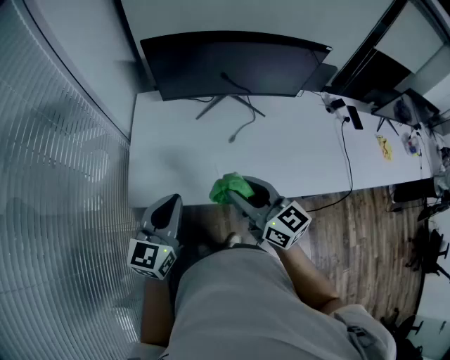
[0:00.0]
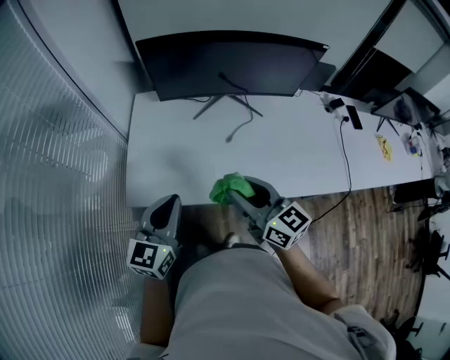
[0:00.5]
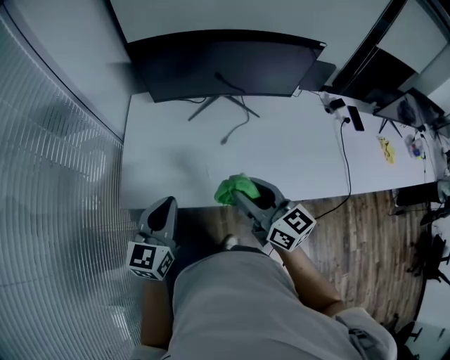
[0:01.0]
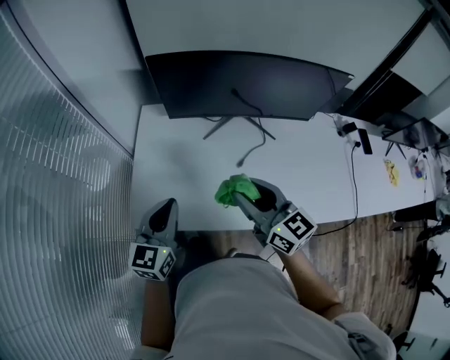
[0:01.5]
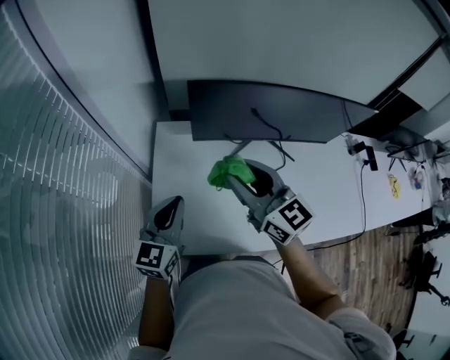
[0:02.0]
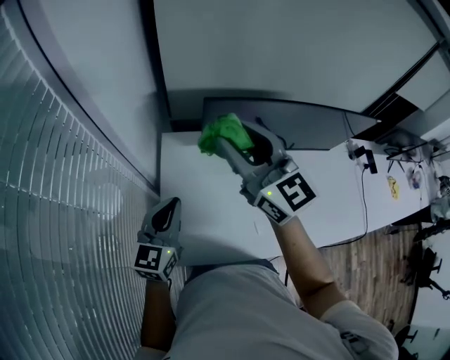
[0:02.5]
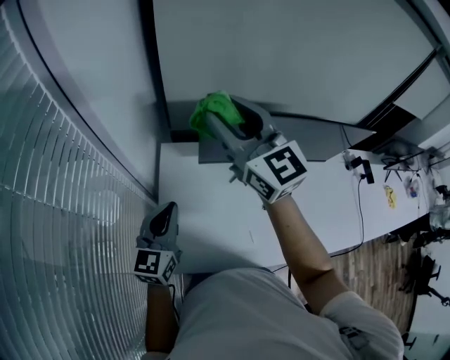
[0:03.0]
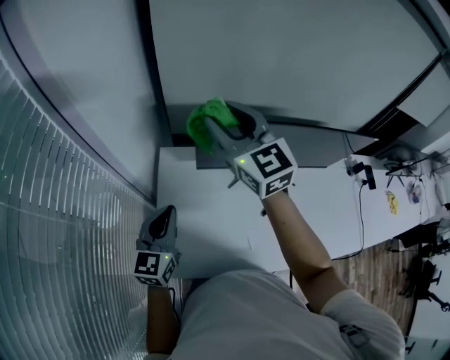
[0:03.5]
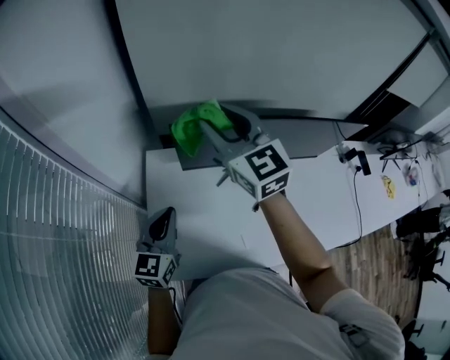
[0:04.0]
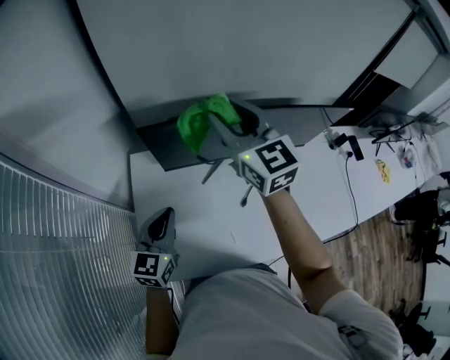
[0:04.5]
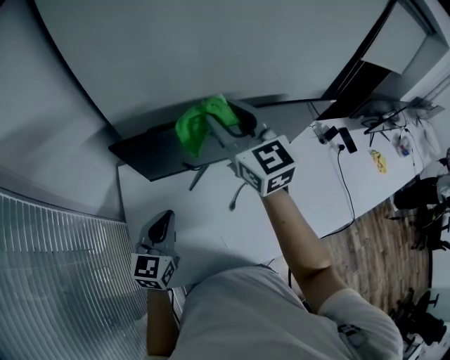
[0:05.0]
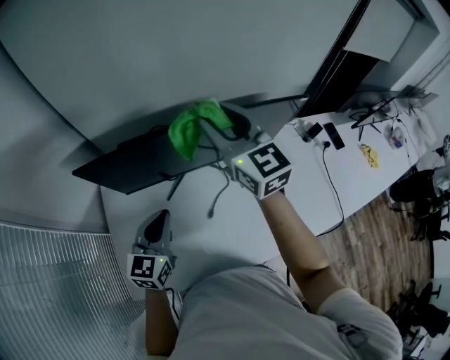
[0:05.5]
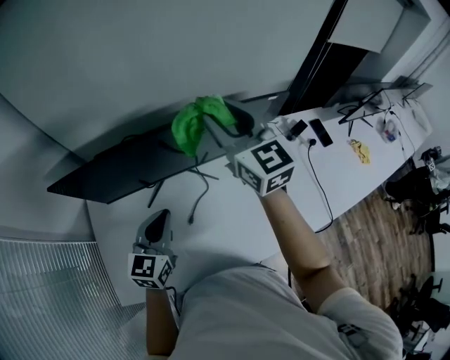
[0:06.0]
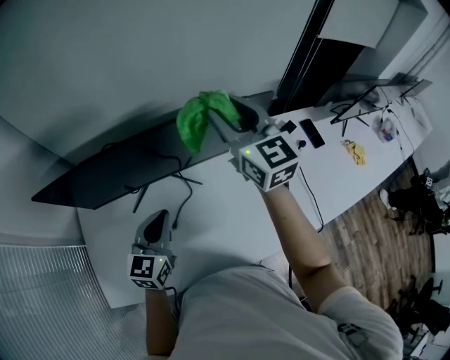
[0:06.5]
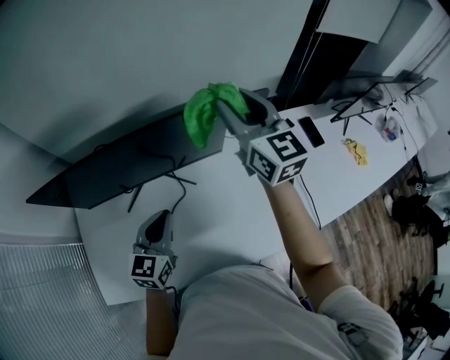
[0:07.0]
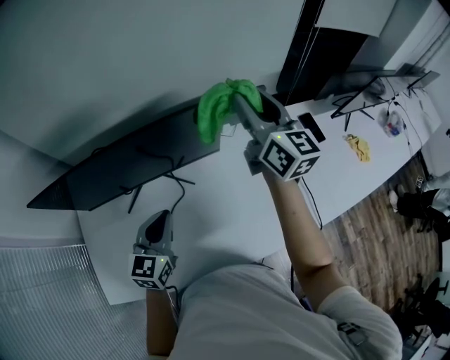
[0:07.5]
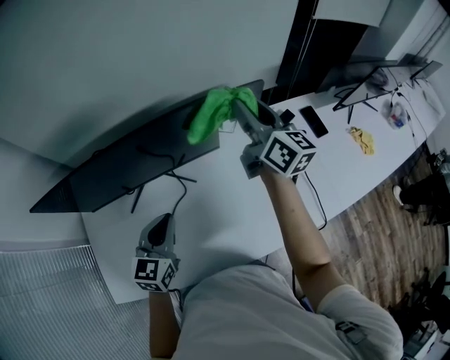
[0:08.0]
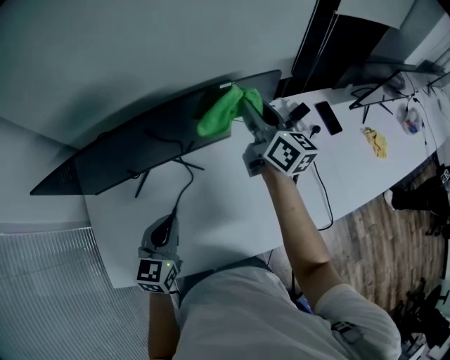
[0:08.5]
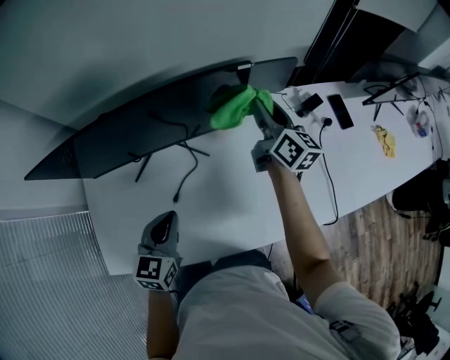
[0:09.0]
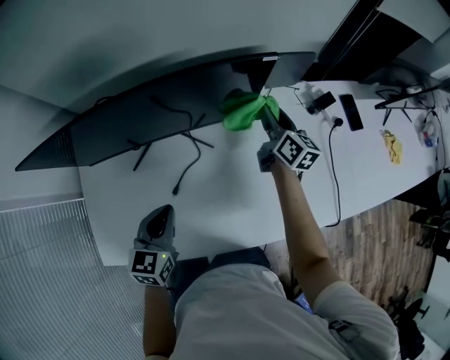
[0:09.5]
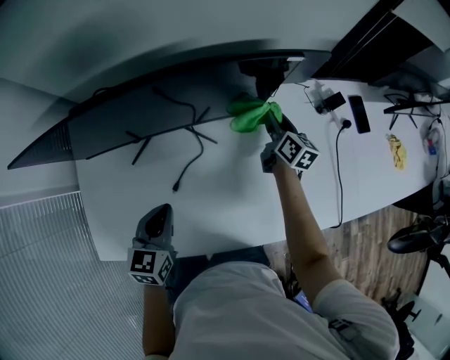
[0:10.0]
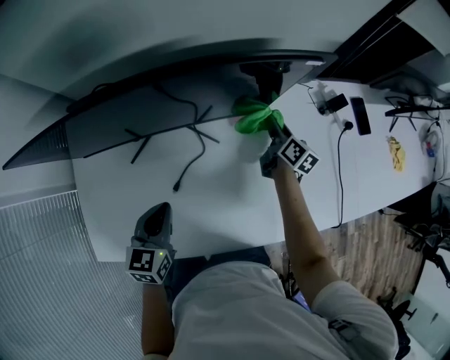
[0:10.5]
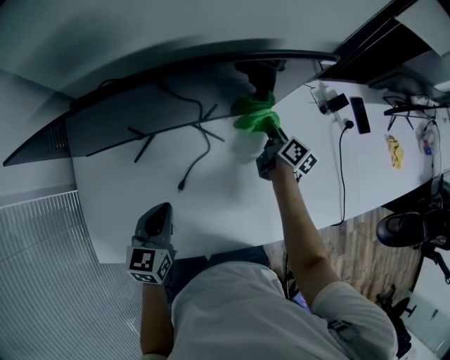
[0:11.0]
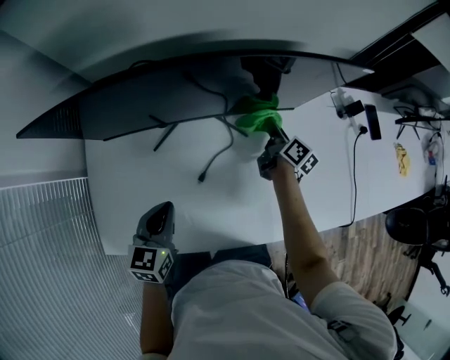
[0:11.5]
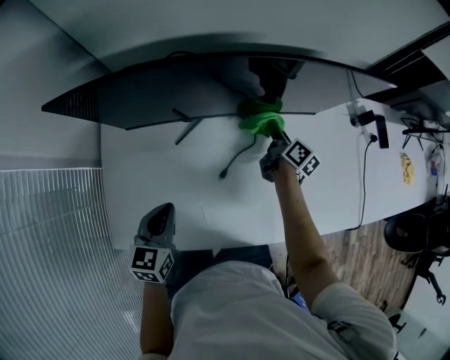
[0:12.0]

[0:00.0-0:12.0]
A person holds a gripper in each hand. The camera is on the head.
0:00.0 to 0:02.0: The right gripper shifts about 25 cm forward. The left gripper goes approximately 25 cm forward and to the left.
0:02.0 to 0:04.0: The left gripper shifts roughly 10 cm forward, while the right gripper moves forward and upward, approximately 20 cm.
0:04.0 to 0:06.0: The two grippers go about 35 cm to the right.
0:06.0 to 0:08.0: The left gripper travels to the right by some 15 cm; the right gripper goes some 25 cm to the right, and changes its angle by some 40 degrees.
0:08.0 to 0:10.0: The right gripper heads downward, covering some 30 cm, and changes its angle by approximately 30 degrees. Meanwhile the left gripper goes about 10 cm downward and to the left.
0:10.0 to 0:12.0: The two grippers go approximately 20 cm to the left.

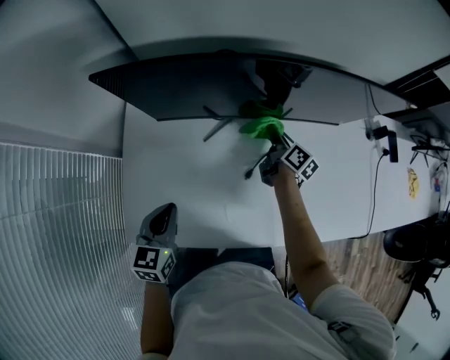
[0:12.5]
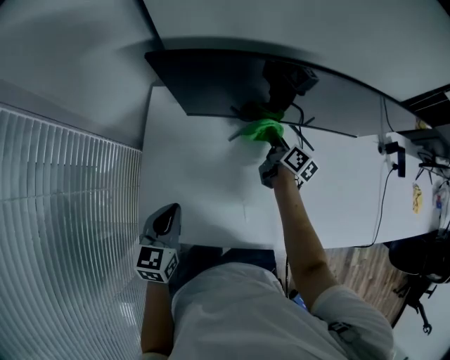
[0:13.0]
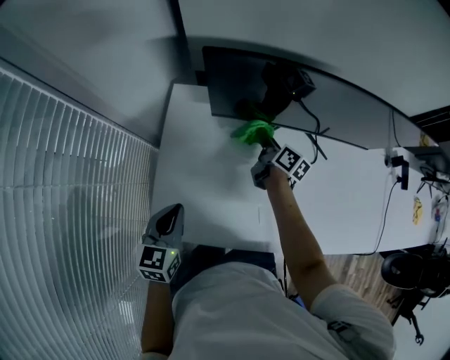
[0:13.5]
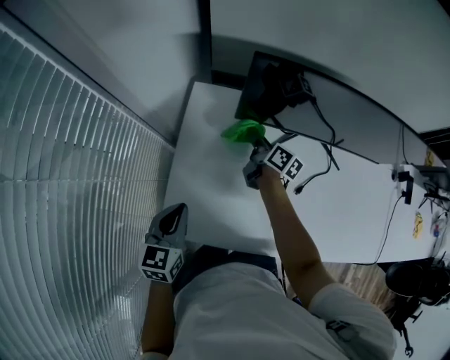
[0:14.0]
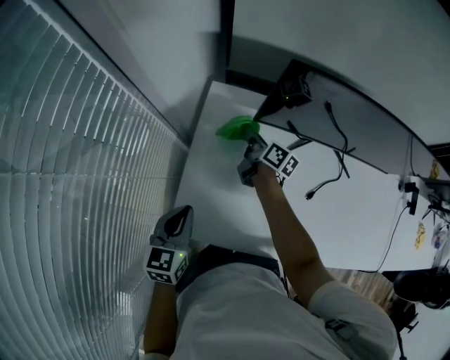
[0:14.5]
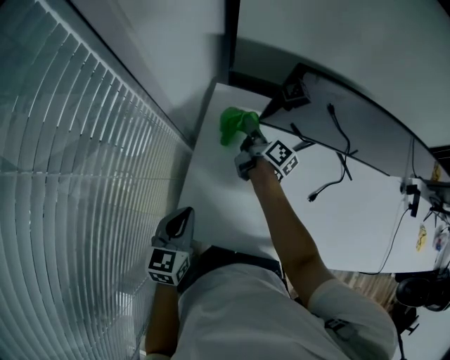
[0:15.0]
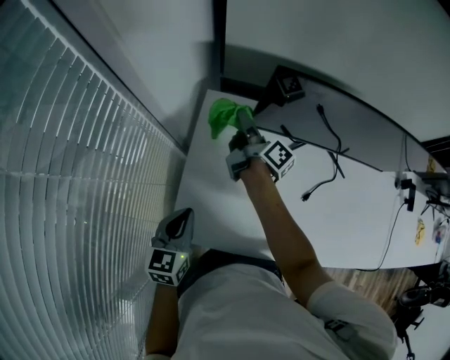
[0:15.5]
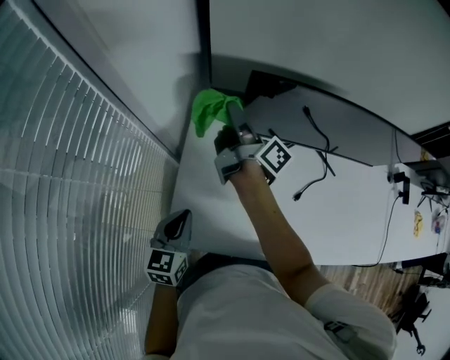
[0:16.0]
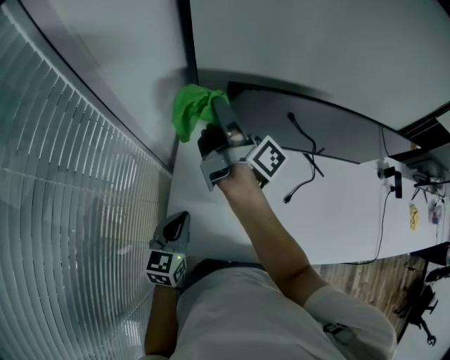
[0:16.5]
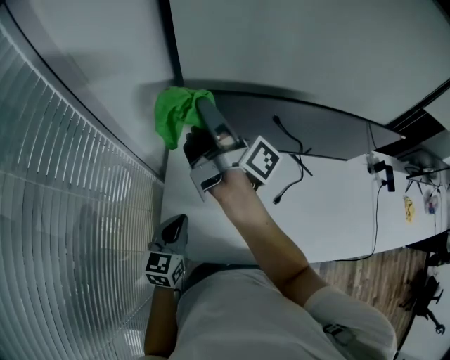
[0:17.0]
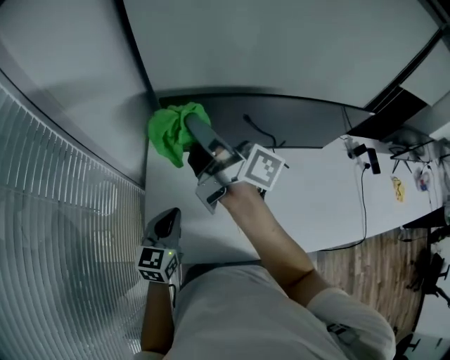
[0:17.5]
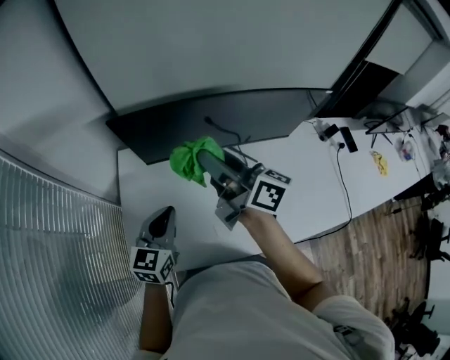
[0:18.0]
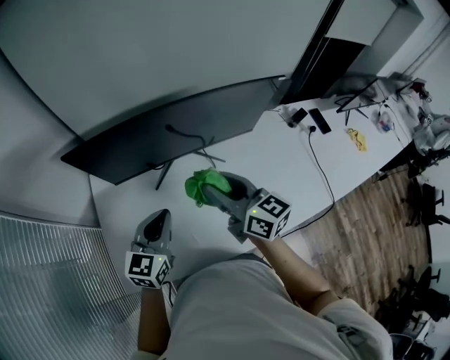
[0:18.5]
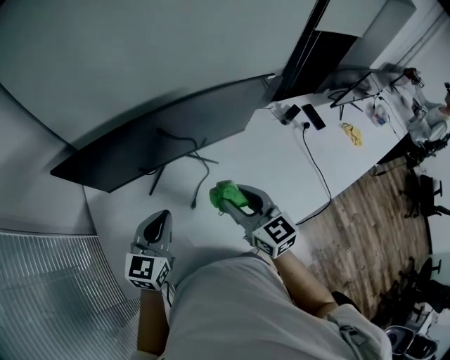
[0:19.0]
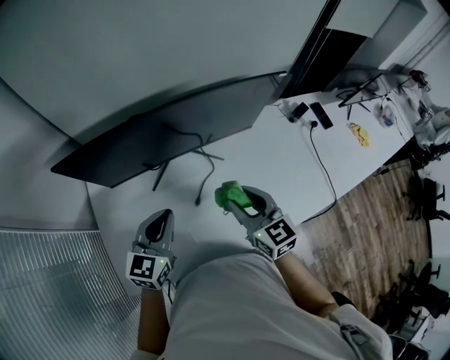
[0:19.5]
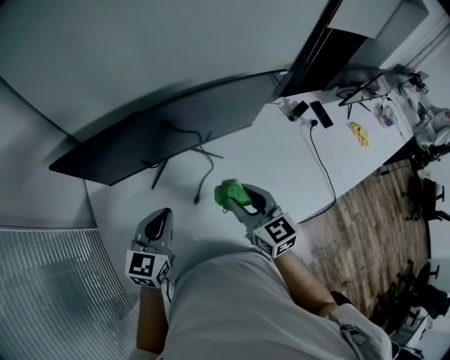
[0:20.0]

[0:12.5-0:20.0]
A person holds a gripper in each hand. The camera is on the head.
0:12.5 to 0:14.5: The right gripper heads to the left, covering about 40 cm, and turns by some 20 degrees. The left gripper travels to the left by approximately 20 cm.
0:14.5 to 0:16.5: The left gripper ends up some 5 cm from where it was, while the right gripper moves upward, about 30 cm, and tips its fingers upward by some 40 degrees.
0:16.5 to 0:18.0: The left gripper travels to the right and upward by some 20 cm. Meanwhile the right gripper goes about 25 cm to the right and backward, and swivels about 40 degrees.
0:18.0 to 0:20.0: The left gripper is displaced to the right by roughly 10 cm, while the right gripper moves to the right and downward, some 20 cm, and swivels about 50 degrees.

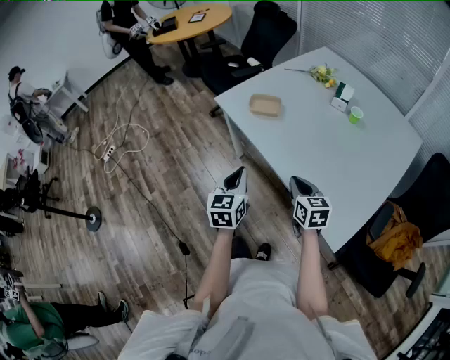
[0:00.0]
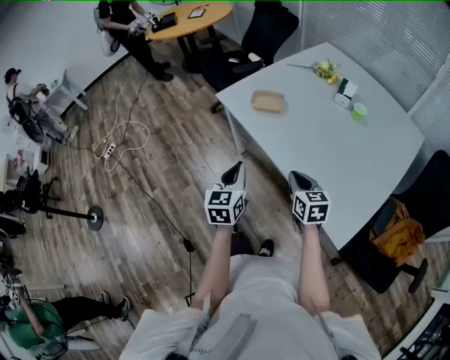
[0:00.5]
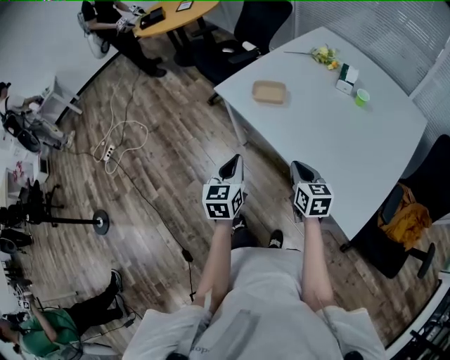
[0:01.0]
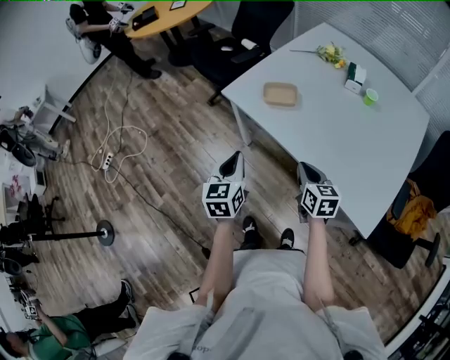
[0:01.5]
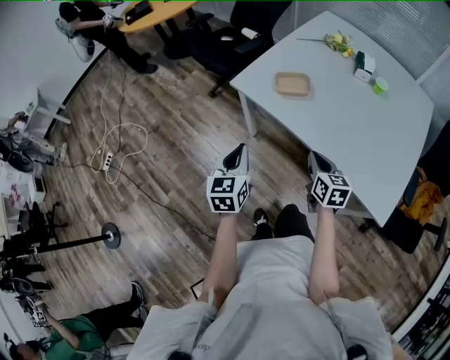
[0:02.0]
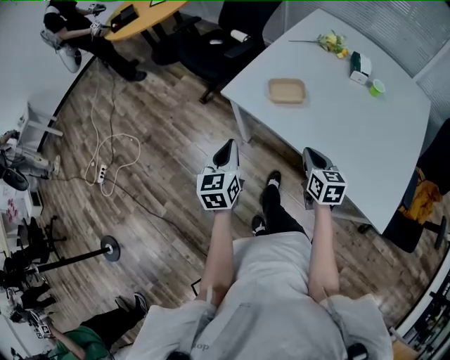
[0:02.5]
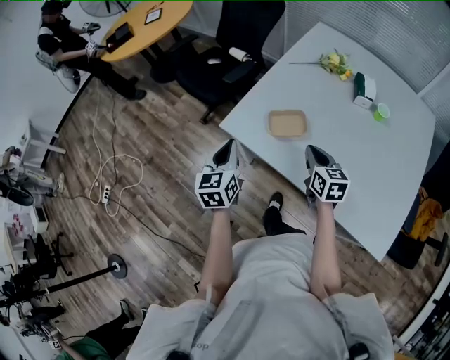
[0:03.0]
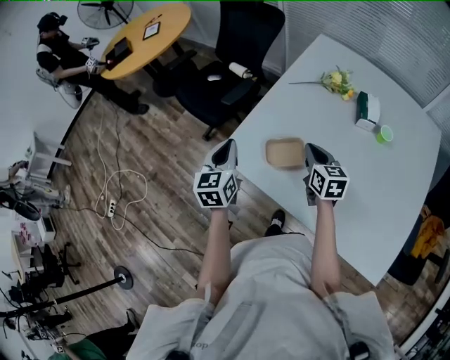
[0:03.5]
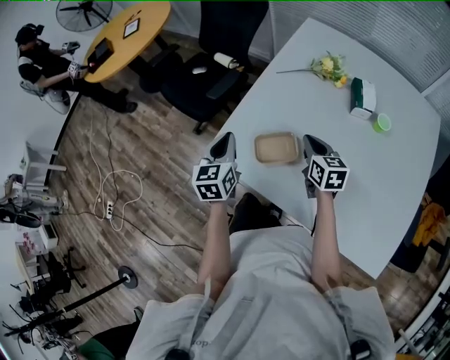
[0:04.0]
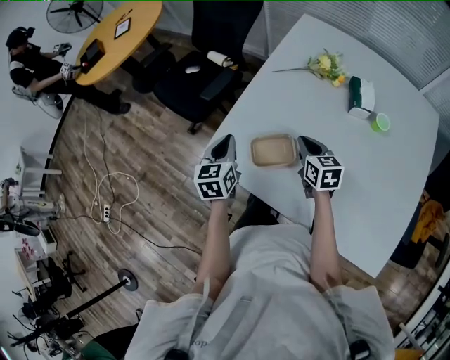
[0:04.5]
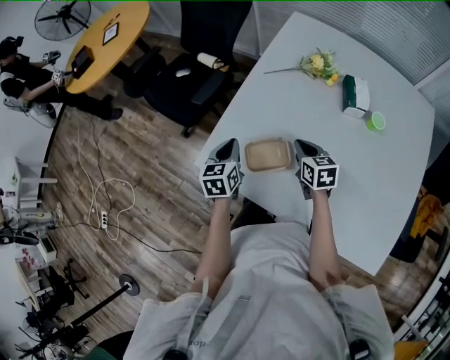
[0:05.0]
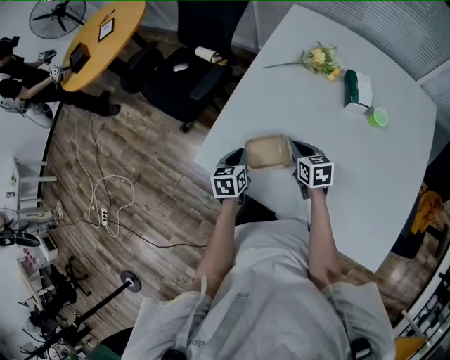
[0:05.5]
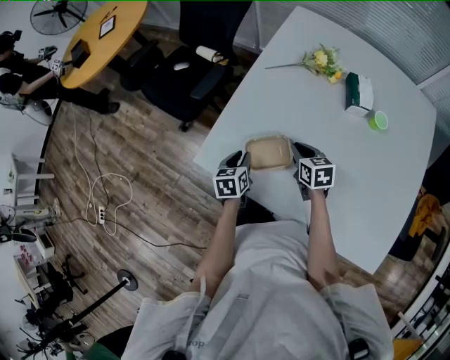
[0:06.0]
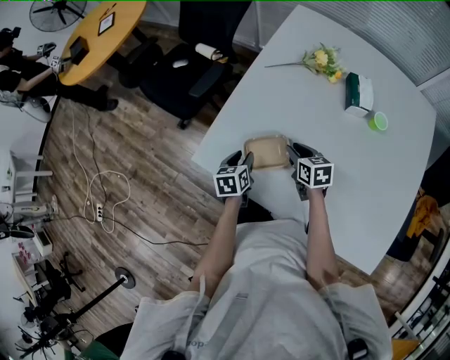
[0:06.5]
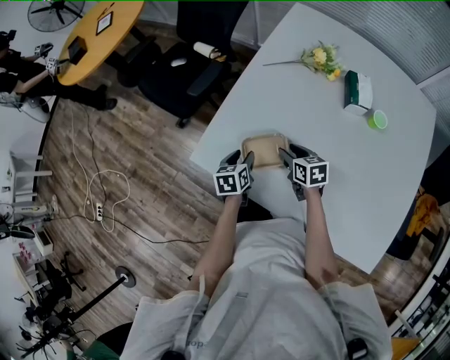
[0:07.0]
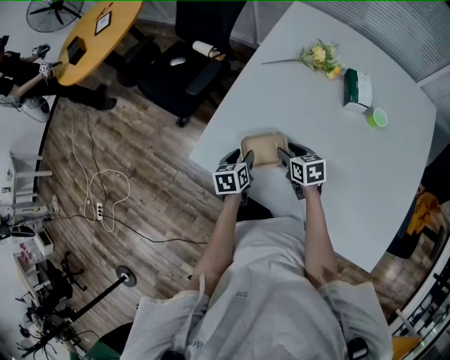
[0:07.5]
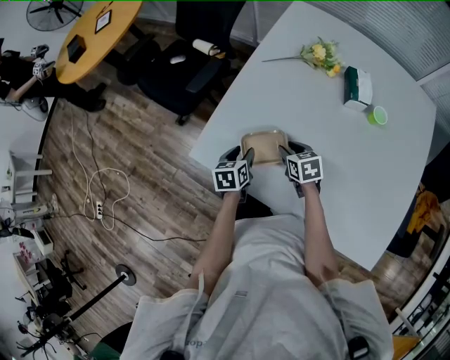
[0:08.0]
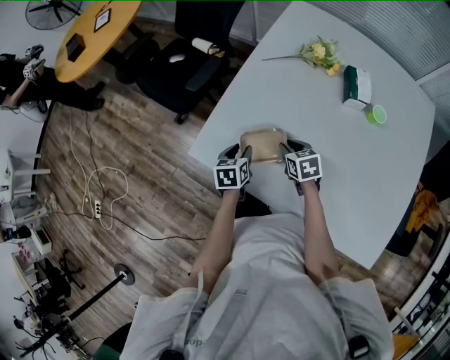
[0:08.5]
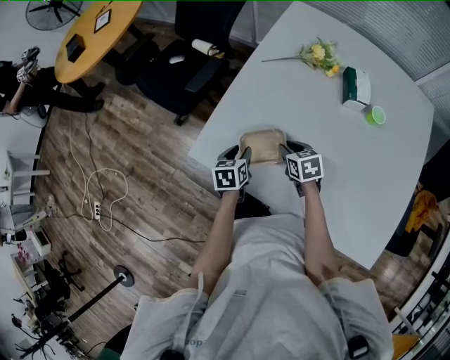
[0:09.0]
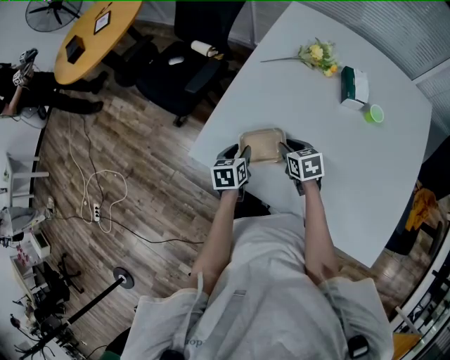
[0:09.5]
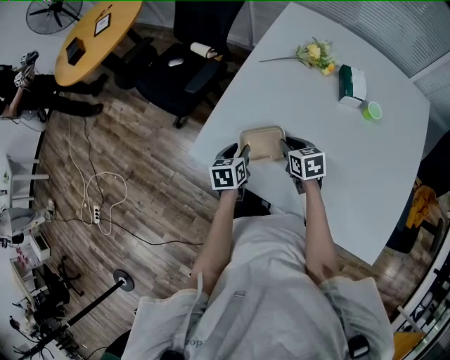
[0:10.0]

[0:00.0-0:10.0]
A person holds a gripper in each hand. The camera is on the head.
0:00.0 to 0:02.0: The two grippers go roughly 20 cm to the left and forward.
0:02.0 to 0:04.0: The two grippers go roughly 35 cm forward.
0:04.0 to 0:06.0: The right gripper travels downward by some 10 cm, while the left gripper travels downward by roughly 20 cm, swivels approximately 20 degrees, and opens its fingers.
0:06.0 to 0:08.0: The left gripper opens. Meanwhile the right gripper opens up.
0:08.0 to 0:10.0: The grippers move only a little.
